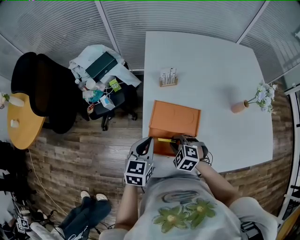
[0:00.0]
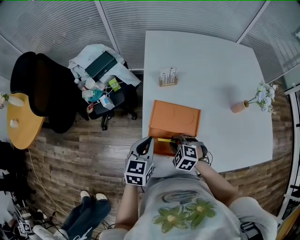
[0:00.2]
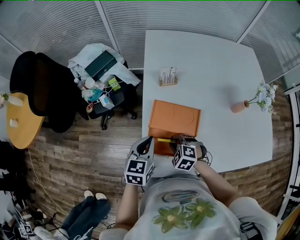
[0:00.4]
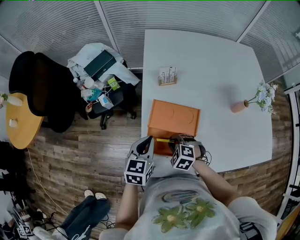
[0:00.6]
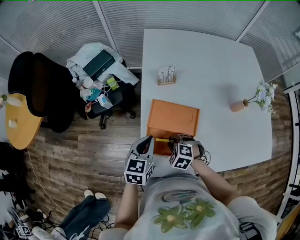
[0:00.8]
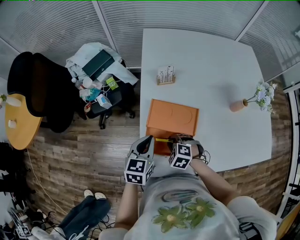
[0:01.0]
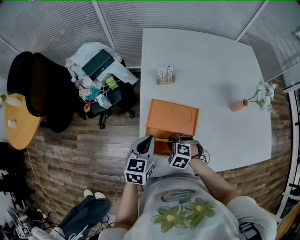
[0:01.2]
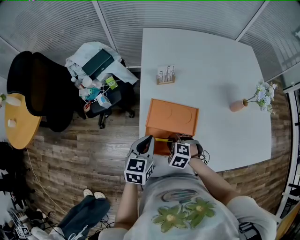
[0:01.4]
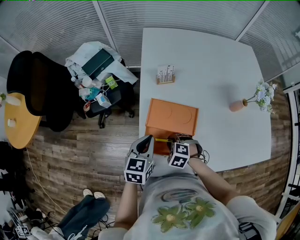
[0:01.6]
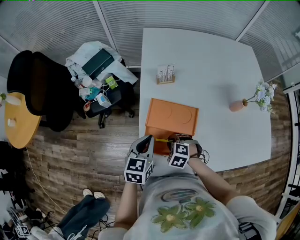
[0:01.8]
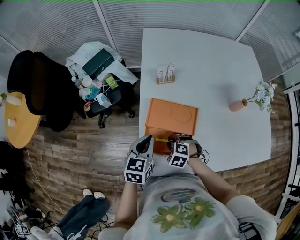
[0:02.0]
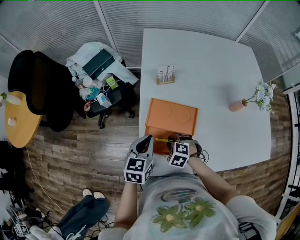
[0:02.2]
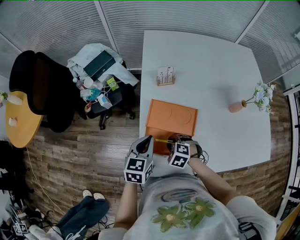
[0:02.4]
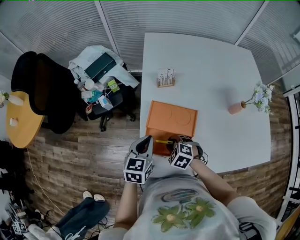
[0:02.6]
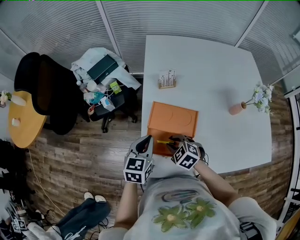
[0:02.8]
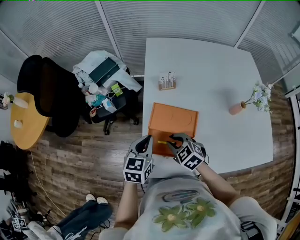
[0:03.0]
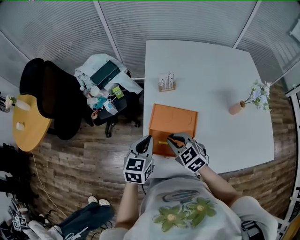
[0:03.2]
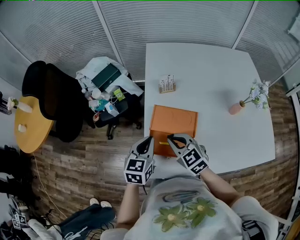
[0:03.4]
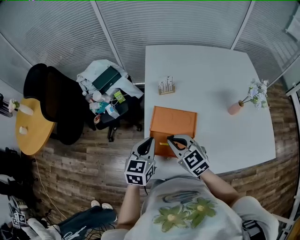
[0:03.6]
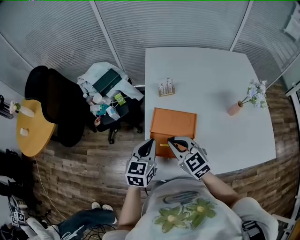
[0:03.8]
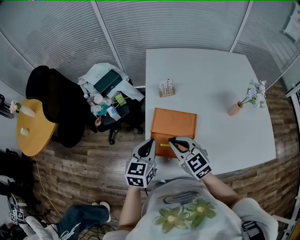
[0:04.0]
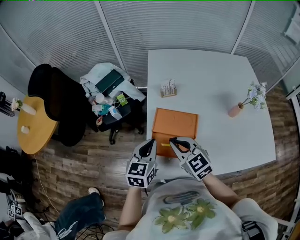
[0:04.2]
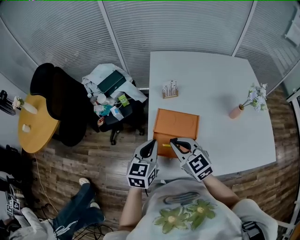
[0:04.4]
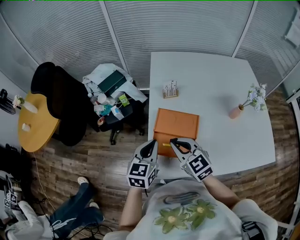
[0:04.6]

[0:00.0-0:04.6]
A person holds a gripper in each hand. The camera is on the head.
0:00.0 to 0:01.6: There are only small adjustments of the grippers.
0:01.6 to 0:03.0: The right gripper is displaced upward by roughly 10 cm, and rotates approximately 30 degrees.
0:03.0 to 0:04.6: The left gripper shifts roughly 5 cm upward, while the right gripper shifts approximately 15 cm upward, turns by roughly 30 degrees, and closes.

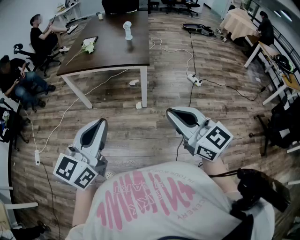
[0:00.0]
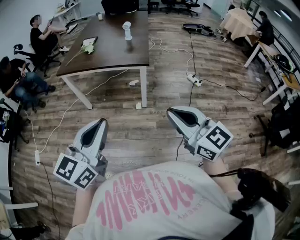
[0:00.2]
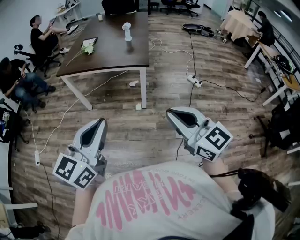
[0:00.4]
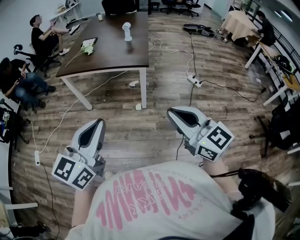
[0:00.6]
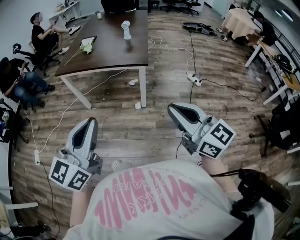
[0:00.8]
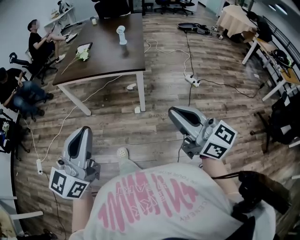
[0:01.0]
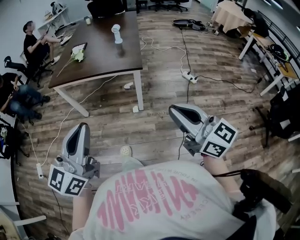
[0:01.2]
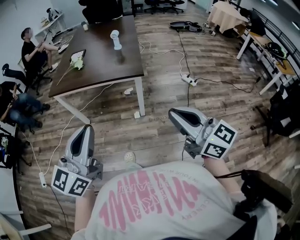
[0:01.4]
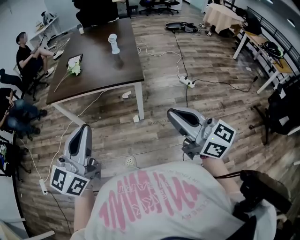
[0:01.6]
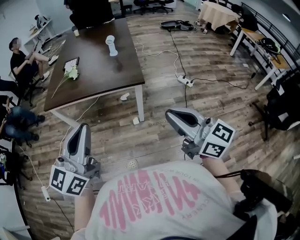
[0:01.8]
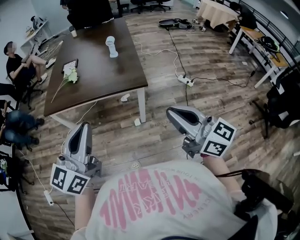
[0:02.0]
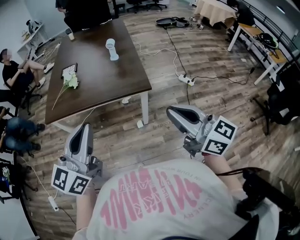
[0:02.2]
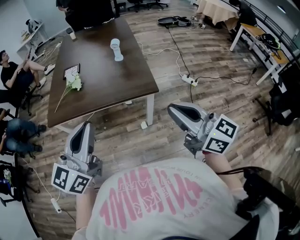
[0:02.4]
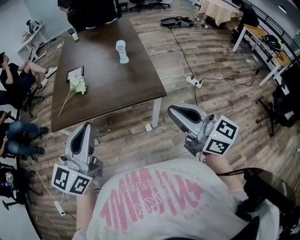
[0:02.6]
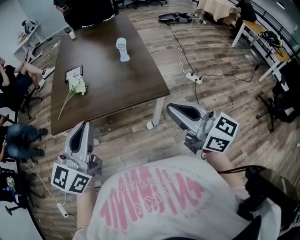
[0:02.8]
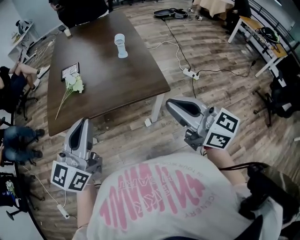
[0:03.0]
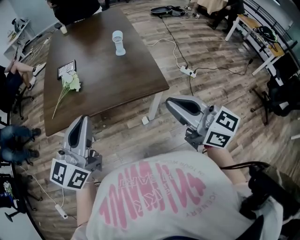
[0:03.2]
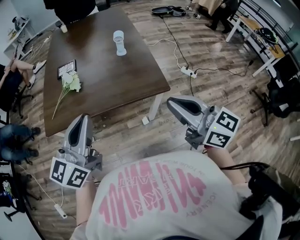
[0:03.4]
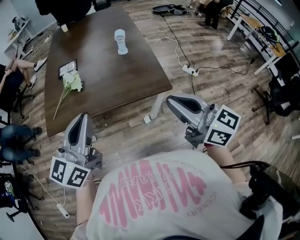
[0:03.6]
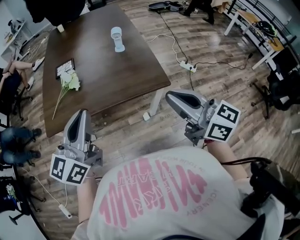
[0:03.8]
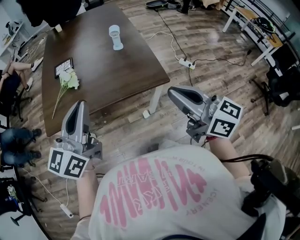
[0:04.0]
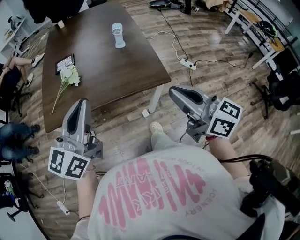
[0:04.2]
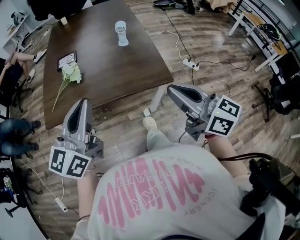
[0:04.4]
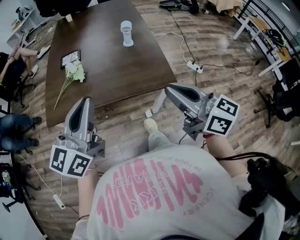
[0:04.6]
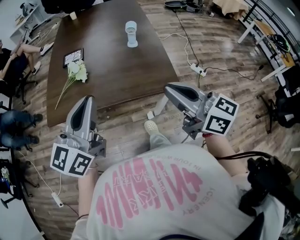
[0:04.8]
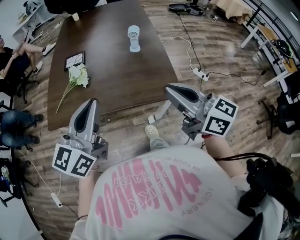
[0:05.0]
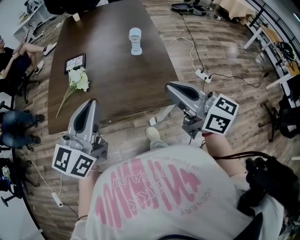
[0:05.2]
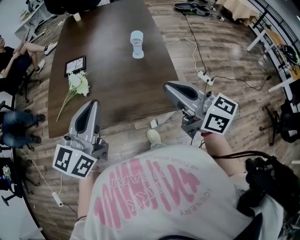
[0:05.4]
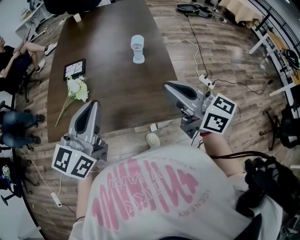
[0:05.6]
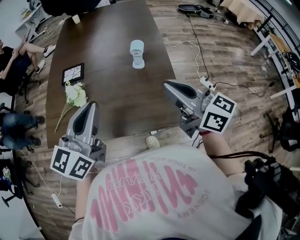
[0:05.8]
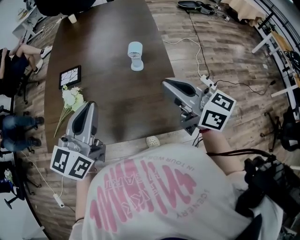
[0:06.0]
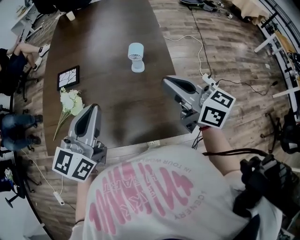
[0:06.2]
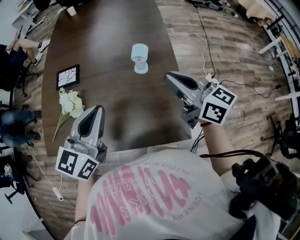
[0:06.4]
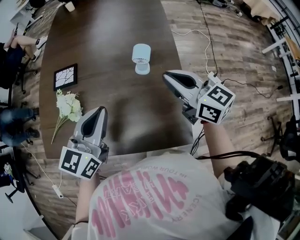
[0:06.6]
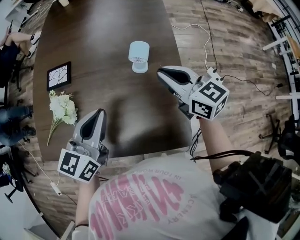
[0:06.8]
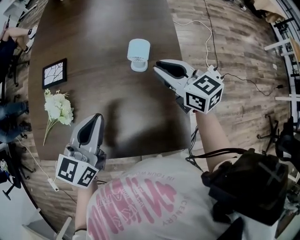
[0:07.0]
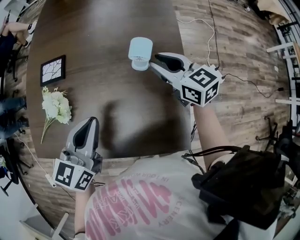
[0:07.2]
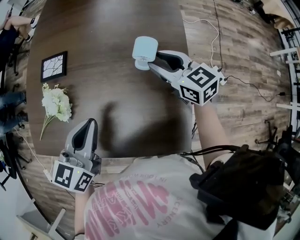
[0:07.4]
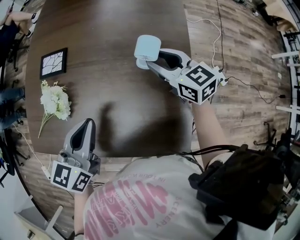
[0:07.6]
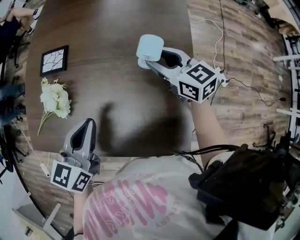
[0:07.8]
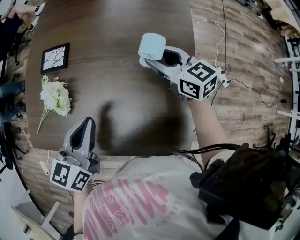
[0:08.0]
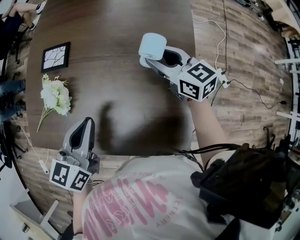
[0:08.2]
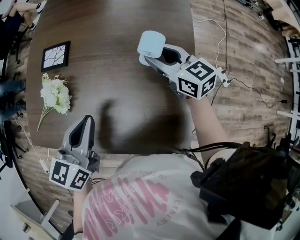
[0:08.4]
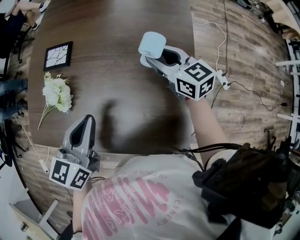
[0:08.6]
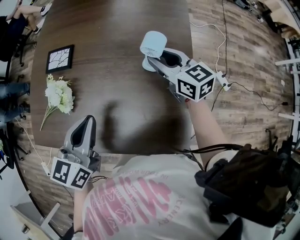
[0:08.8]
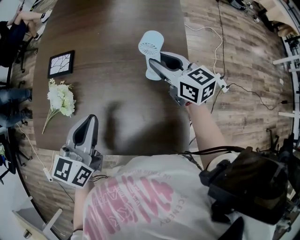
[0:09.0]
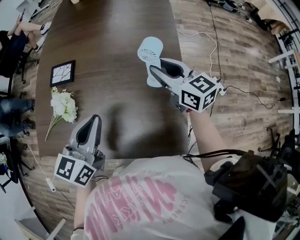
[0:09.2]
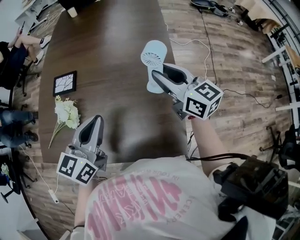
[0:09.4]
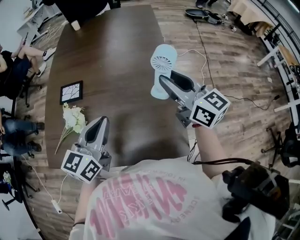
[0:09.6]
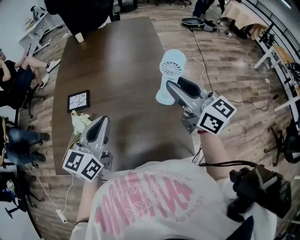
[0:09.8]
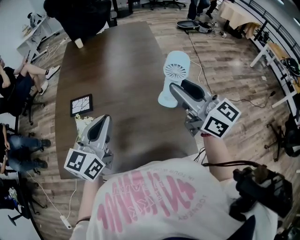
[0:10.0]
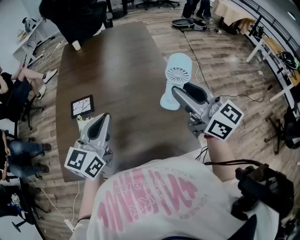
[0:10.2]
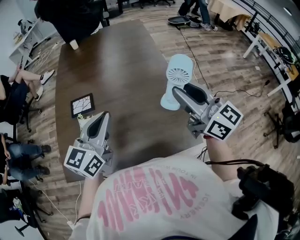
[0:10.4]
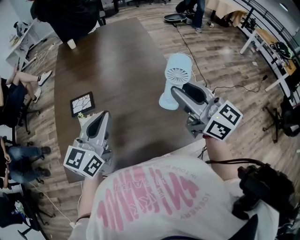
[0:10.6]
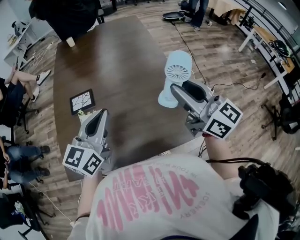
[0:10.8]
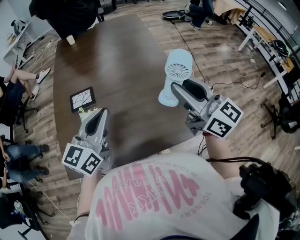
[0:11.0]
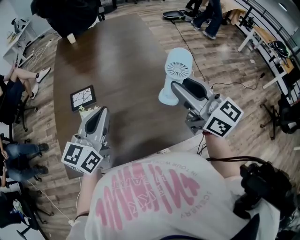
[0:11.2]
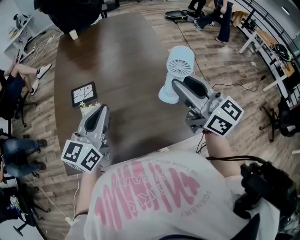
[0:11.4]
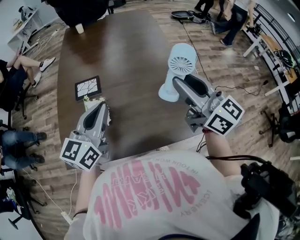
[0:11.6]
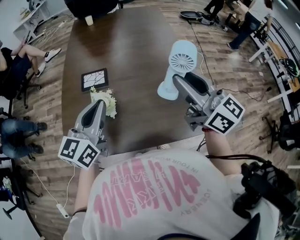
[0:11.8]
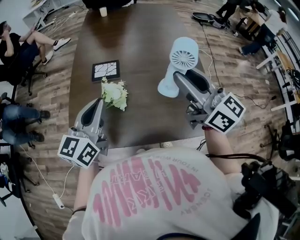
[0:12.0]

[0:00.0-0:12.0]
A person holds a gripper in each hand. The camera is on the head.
0:00.0 to 0:01.6: The two grippers go about 10 cm forward.
0:01.6 to 0:03.0: The two grippers go approximately 30 cm forward and to the left.
0:03.0 to 0:04.4: The grippers move only a little.
0:04.4 to 0:06.0: The two grippers go some 25 cm forward.
0:06.0 to 0:07.6: The right gripper goes some 30 cm forward and downward, rotates about 20 degrees, and opens up. Meanwhile the left gripper moves downward and forward, about 15 cm, and changes its angle by roughly 20 degrees.
0:07.6 to 0:09.0: The grippers stay close to where they were, moving slightly.
0:09.0 to 0:10.4: The left gripper goes some 10 cm upward, and turns by approximately 30 degrees. Meanwhile the right gripper moves upward and backward, about 30 cm, and swivels about 30 degrees.
0:10.4 to 0:12.0: The two grippers go some 15 cm to the left.

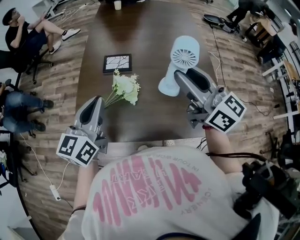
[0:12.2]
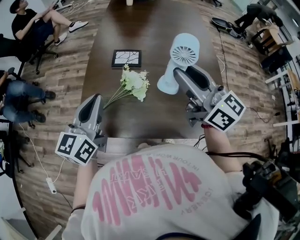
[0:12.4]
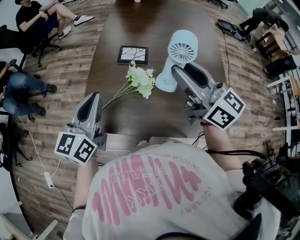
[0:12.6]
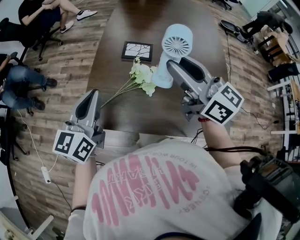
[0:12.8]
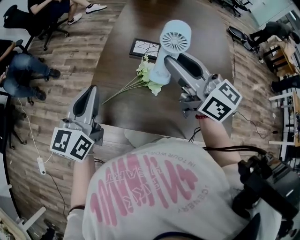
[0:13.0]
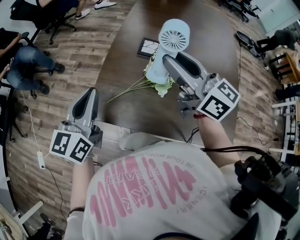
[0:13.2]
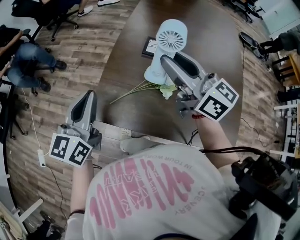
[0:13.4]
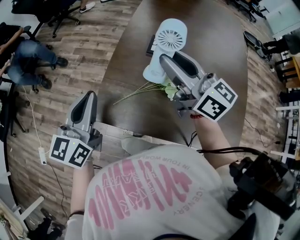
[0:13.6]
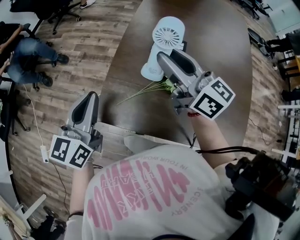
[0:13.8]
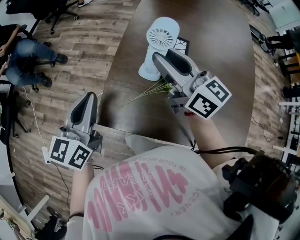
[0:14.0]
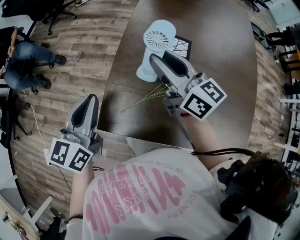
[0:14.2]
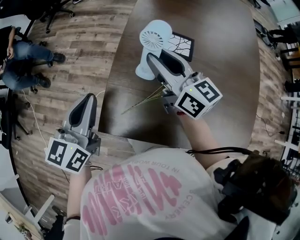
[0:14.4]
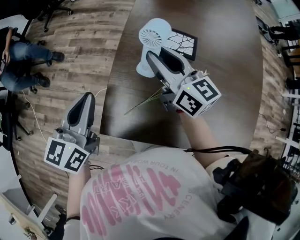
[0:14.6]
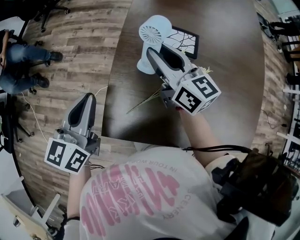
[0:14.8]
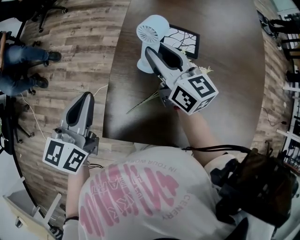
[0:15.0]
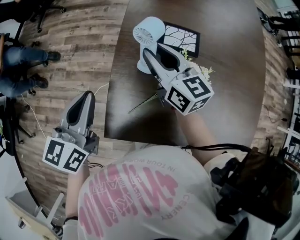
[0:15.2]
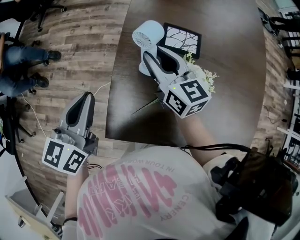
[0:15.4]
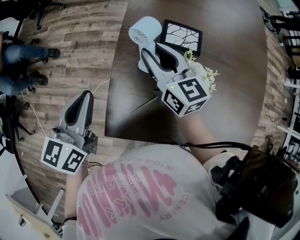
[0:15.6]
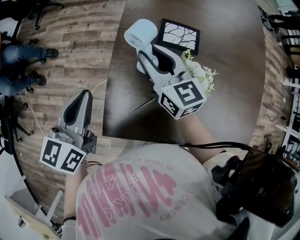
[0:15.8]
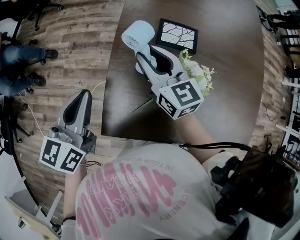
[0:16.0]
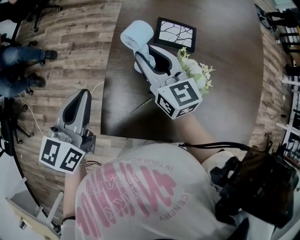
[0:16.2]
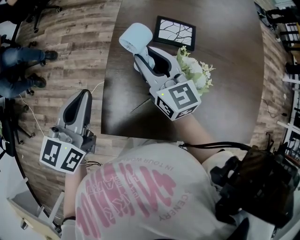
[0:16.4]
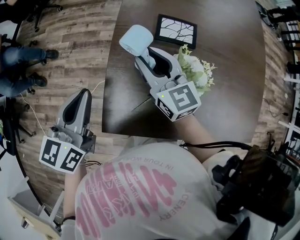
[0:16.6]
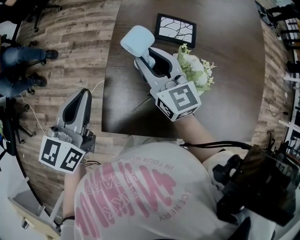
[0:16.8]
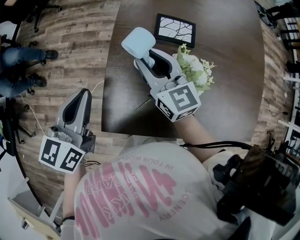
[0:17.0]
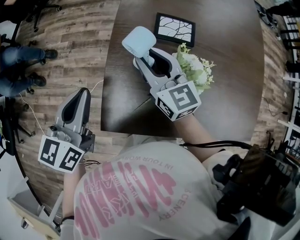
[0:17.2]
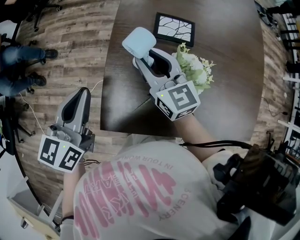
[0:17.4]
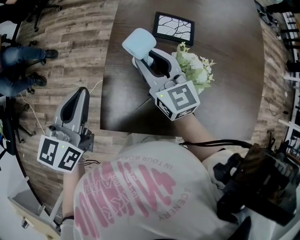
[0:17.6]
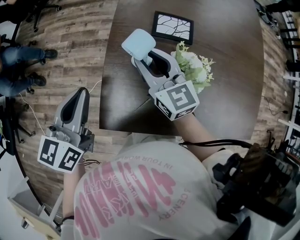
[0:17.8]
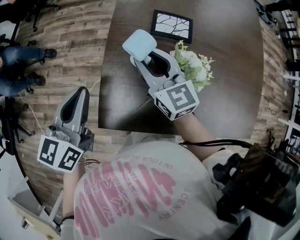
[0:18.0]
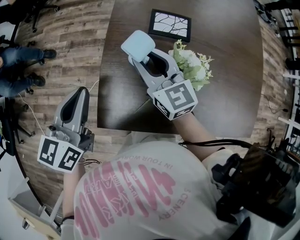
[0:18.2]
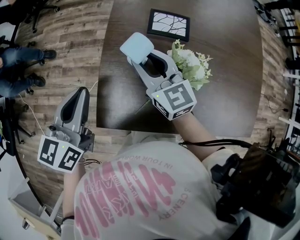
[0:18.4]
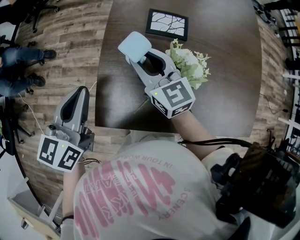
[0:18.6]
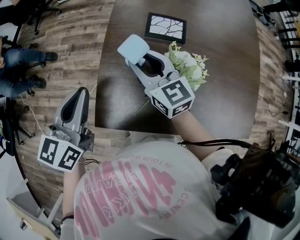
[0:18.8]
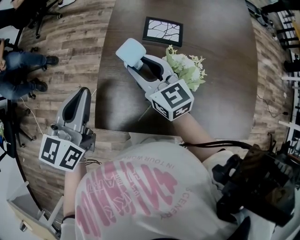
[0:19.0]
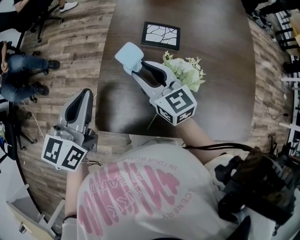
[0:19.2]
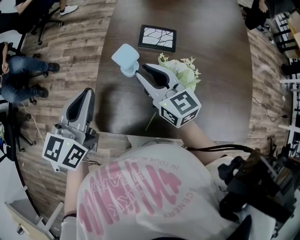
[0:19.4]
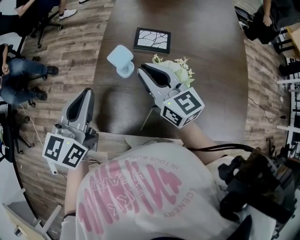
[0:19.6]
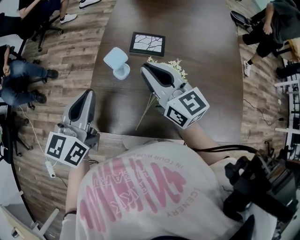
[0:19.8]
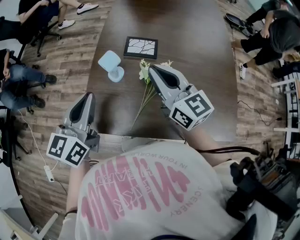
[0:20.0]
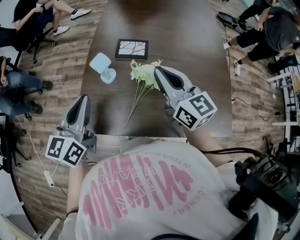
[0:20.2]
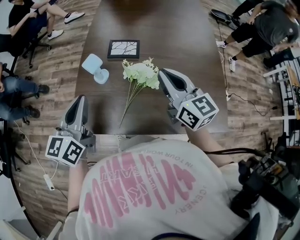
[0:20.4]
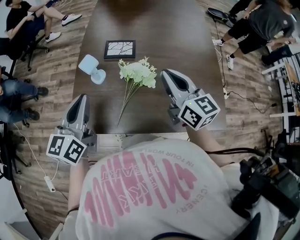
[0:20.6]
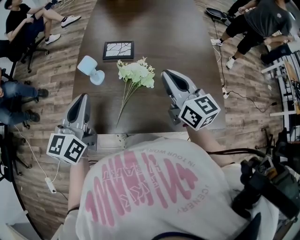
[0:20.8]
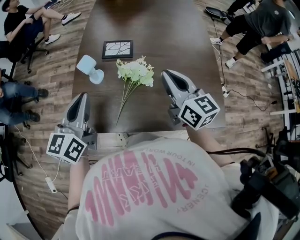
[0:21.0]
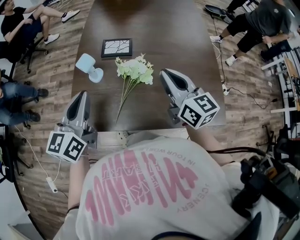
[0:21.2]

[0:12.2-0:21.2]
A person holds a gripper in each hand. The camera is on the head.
0:12.2 to 0:13.8: The left gripper is displaced to the left by approximately 20 cm. Meanwhile the right gripper travels to the left and forward by some 25 cm.
0:13.8 to 0:15.2: The right gripper travels downward and forward by about 15 cm, and changes its angle by some 20 degrees. Meanwhile the left gripper moves forward, about 10 cm.
0:15.2 to 0:18.2: There are only small adjustments of the grippers.
0:18.2 to 0:19.8: The right gripper is displaced upward, to the right and backward by roughly 15 cm, and closes up. The left gripper heads to the right and upward, covering some 10 cm.
0:19.8 to 0:21.2: The left gripper heads to the right, covering roughly 5 cm, while the right gripper travels to the right and backward by approximately 20 cm.
